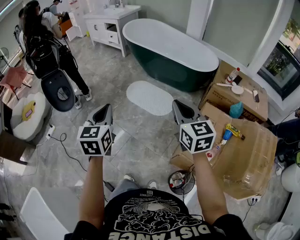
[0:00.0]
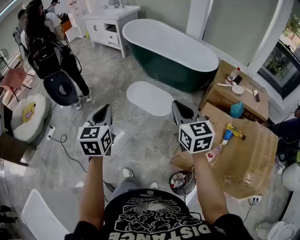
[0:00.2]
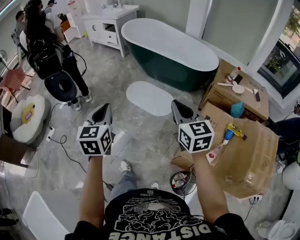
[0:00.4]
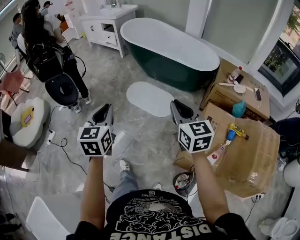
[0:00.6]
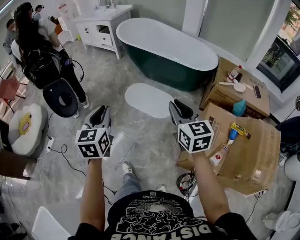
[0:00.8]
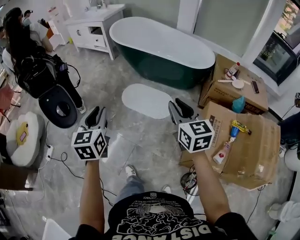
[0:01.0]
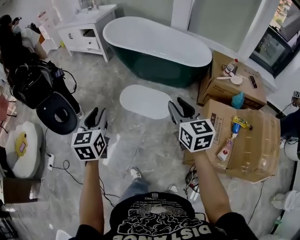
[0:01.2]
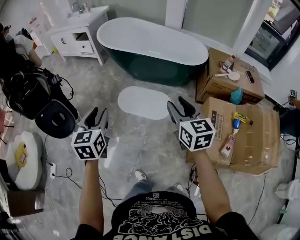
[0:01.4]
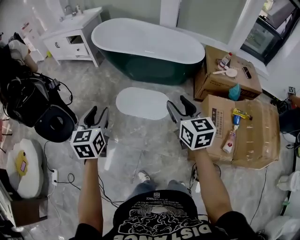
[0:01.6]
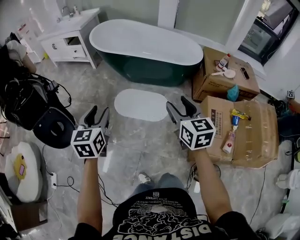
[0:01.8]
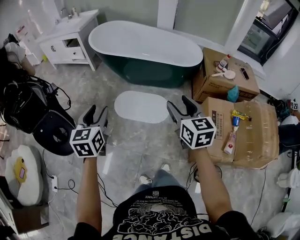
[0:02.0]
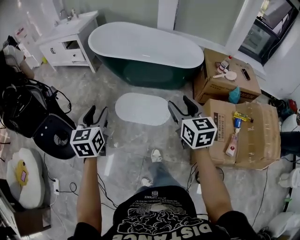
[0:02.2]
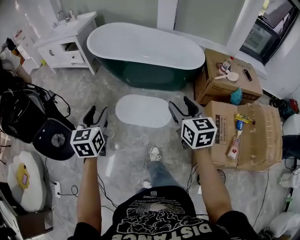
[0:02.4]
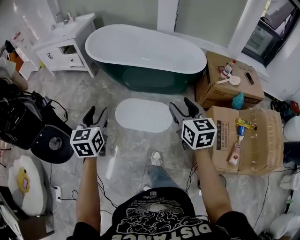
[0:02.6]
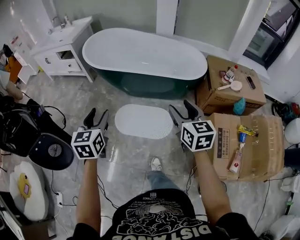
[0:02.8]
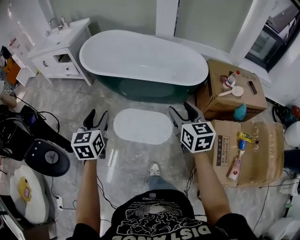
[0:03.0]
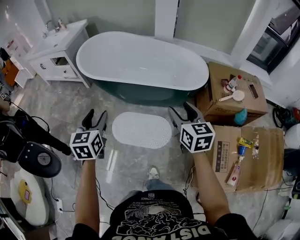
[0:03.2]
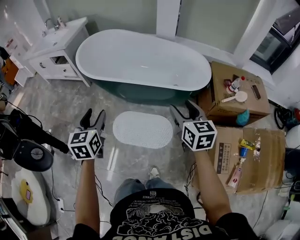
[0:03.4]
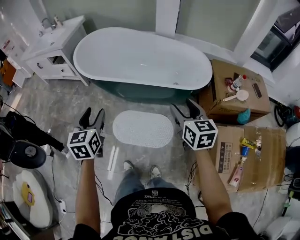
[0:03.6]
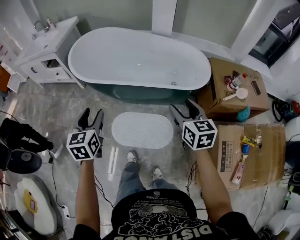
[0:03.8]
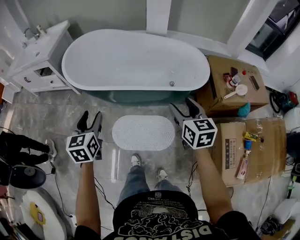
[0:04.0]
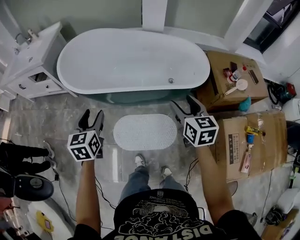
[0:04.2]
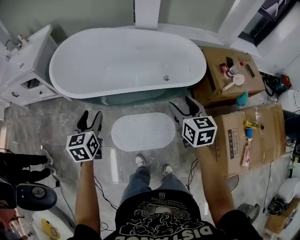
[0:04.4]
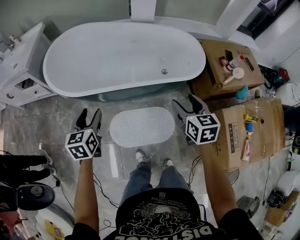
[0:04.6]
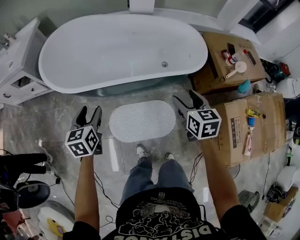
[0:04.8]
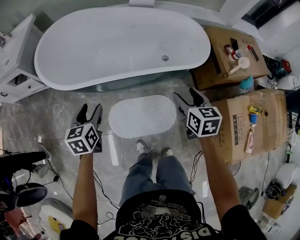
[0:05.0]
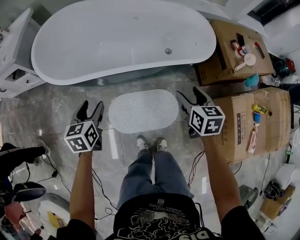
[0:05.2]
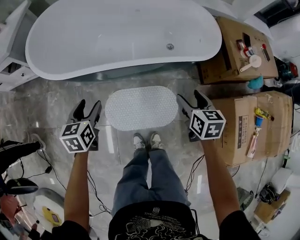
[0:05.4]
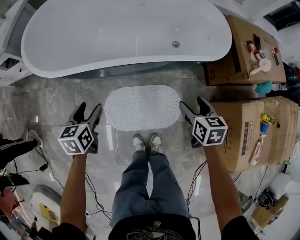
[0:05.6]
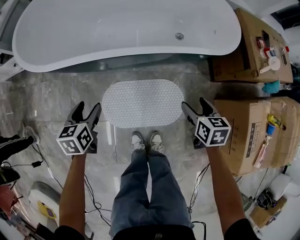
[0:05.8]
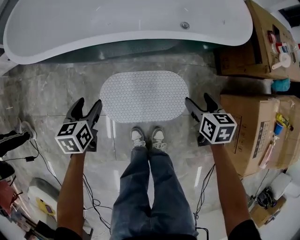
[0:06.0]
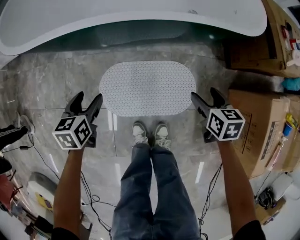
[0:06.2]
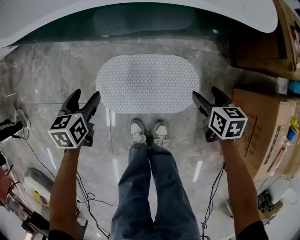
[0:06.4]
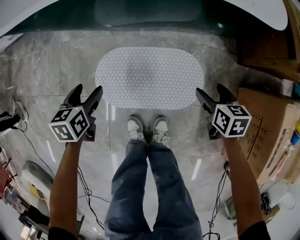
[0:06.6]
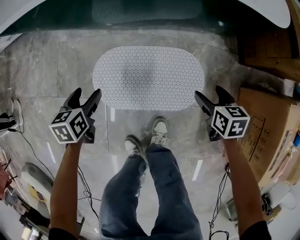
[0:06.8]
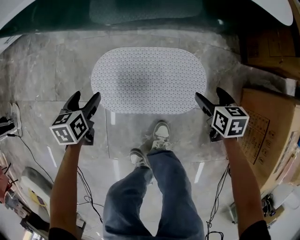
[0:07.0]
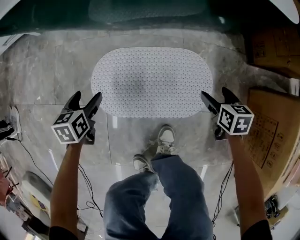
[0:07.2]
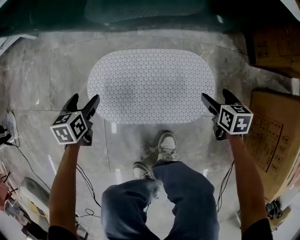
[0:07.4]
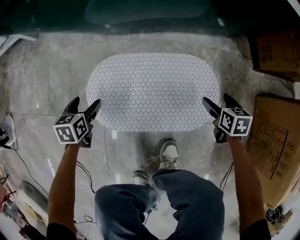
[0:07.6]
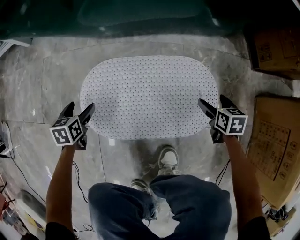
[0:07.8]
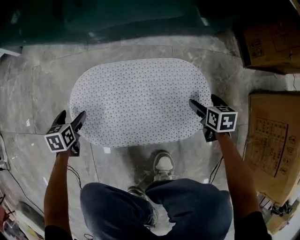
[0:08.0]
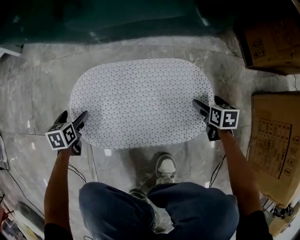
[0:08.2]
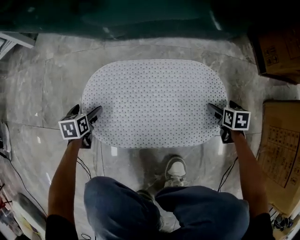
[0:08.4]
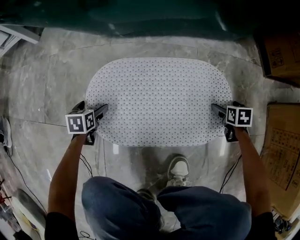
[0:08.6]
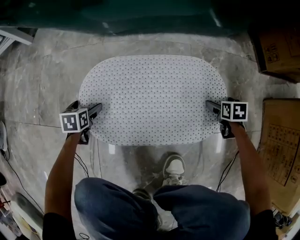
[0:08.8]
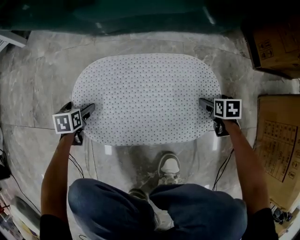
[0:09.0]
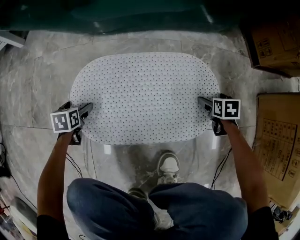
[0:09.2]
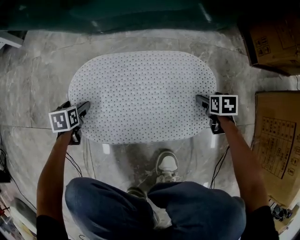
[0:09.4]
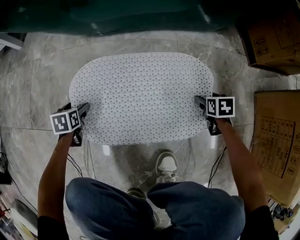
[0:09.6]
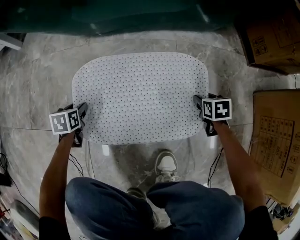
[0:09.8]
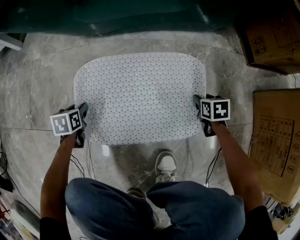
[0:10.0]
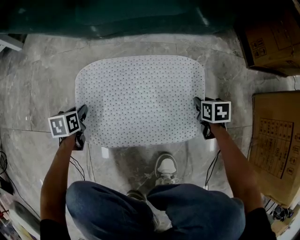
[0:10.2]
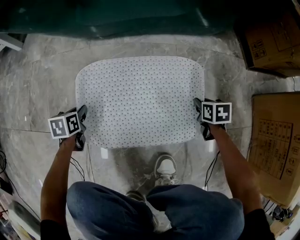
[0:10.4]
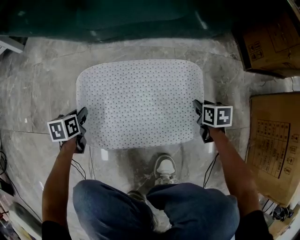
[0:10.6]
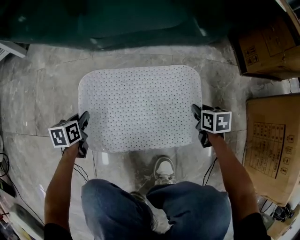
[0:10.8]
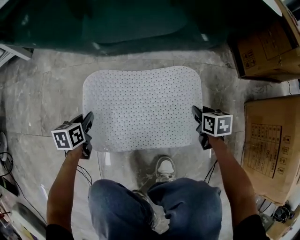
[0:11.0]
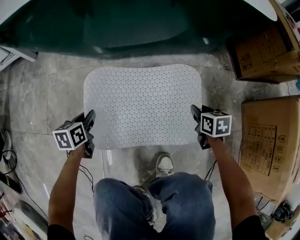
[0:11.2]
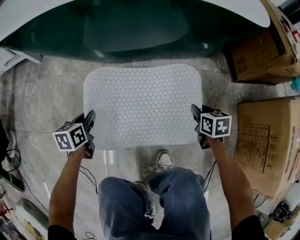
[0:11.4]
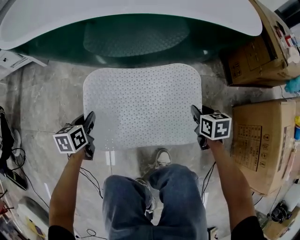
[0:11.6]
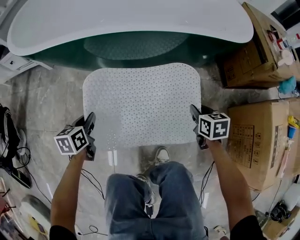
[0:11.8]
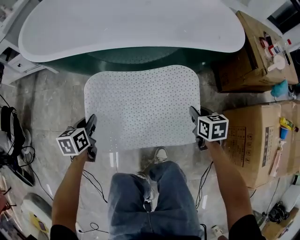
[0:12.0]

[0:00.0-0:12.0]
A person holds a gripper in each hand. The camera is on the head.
0:00.0 to 0:01.6: The two grippers go approximately 25 cm forward and to the left. The right gripper changes its angle by some 20 degrees, and opens; the left gripper opens.
0:01.6 to 0:03.0: The grippers both shift forward by approximately 25 cm.
0:03.0 to 0:04.4: Both grippers travel together forward, about 25 cm.
0:04.4 to 0:06.0: The grippers both shift downward by some 35 cm. The left gripper swivels some 20 degrees; the right gripper rotates some 20 degrees.
0:06.0 to 0:07.6: Both grippers move downward, some 35 cm.
0:07.6 to 0:09.0: The two grippers go roughly 15 cm downward.
0:09.0 to 0:10.4: The left gripper closes. The right gripper travels to the left by some 5 cm, and closes up.
0:10.4 to 0:12.0: The two grippers go about 40 cm upward.

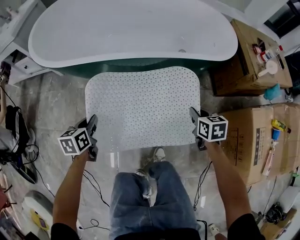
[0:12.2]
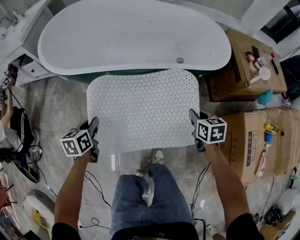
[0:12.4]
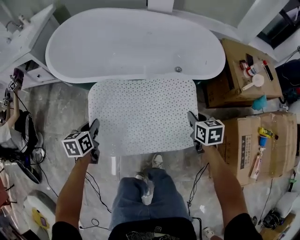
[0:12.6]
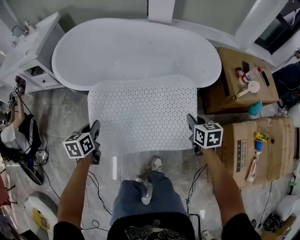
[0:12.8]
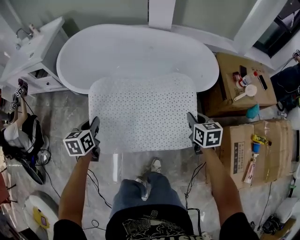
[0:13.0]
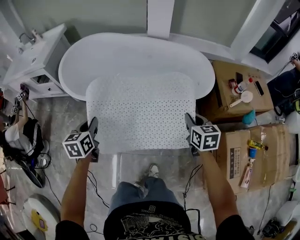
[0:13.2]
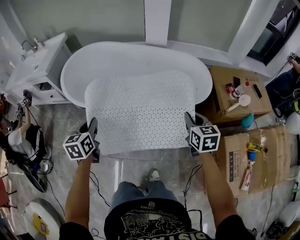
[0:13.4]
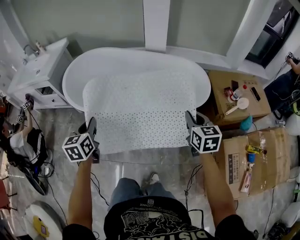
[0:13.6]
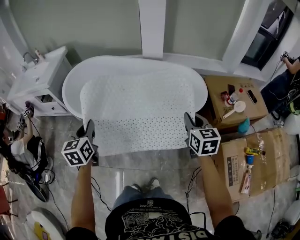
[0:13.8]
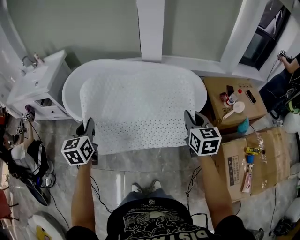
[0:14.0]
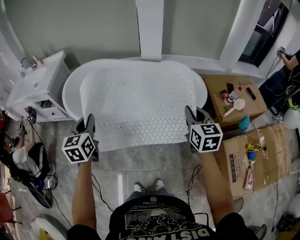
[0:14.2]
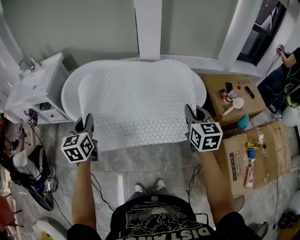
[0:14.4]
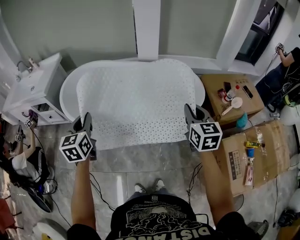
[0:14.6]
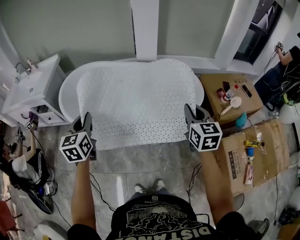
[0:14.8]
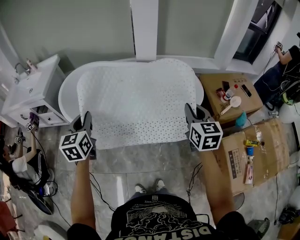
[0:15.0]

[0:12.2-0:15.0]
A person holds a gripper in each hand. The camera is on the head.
0:12.2 to 0:13.6: Both grippers travel together upward, roughly 35 cm. The left gripper swivels some 20 degrees. Meanwhile the right gripper changes its angle by approximately 20 degrees.
0:13.6 to 0:15.0: The left gripper shifts about 10 cm upward and forward, while the right gripper is displaced upward by roughly 10 cm.

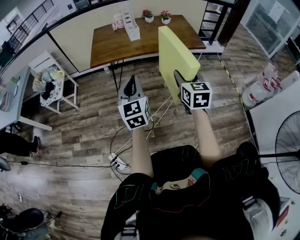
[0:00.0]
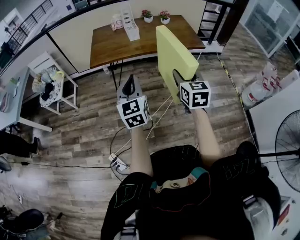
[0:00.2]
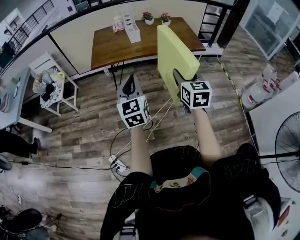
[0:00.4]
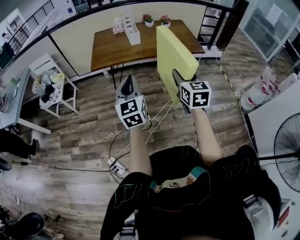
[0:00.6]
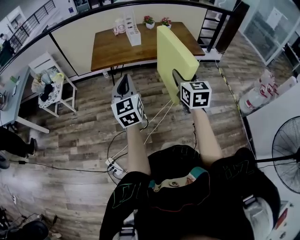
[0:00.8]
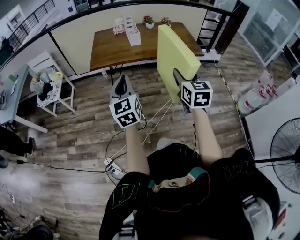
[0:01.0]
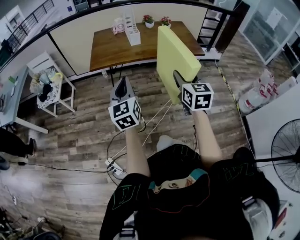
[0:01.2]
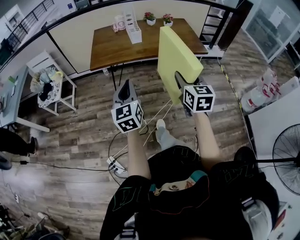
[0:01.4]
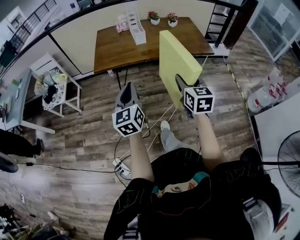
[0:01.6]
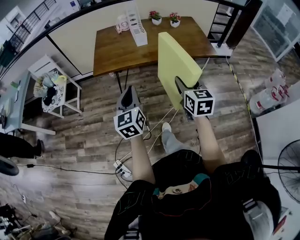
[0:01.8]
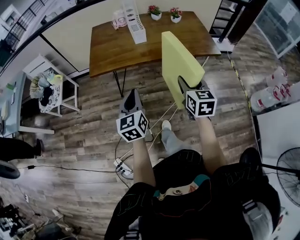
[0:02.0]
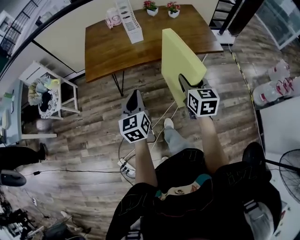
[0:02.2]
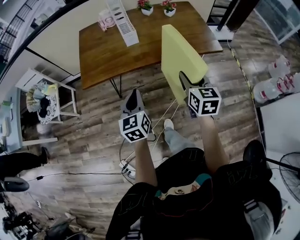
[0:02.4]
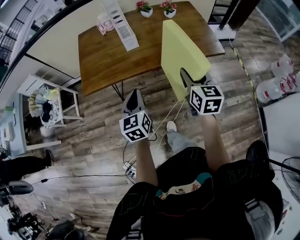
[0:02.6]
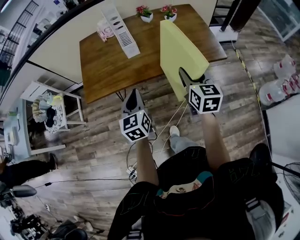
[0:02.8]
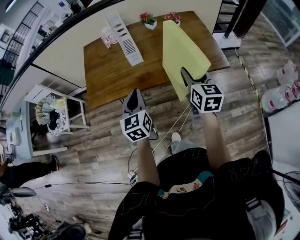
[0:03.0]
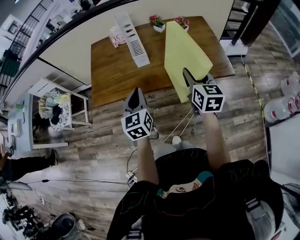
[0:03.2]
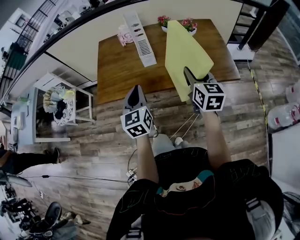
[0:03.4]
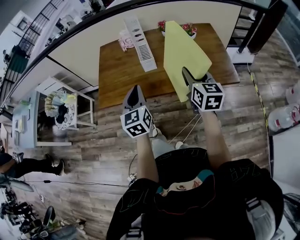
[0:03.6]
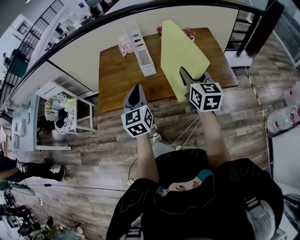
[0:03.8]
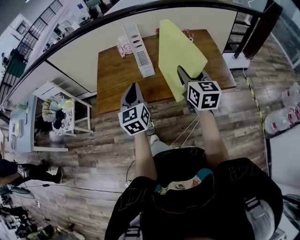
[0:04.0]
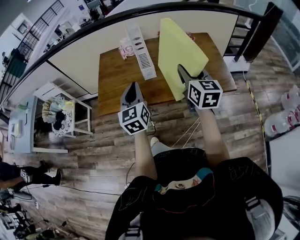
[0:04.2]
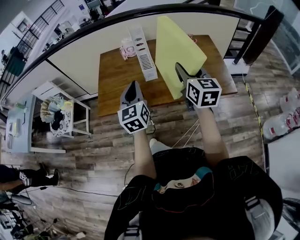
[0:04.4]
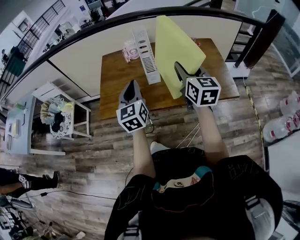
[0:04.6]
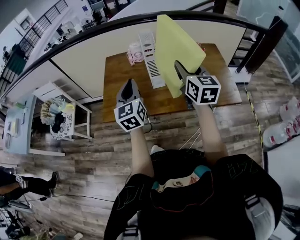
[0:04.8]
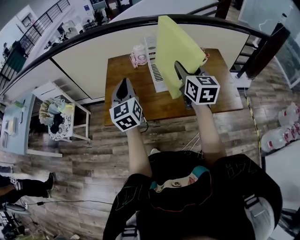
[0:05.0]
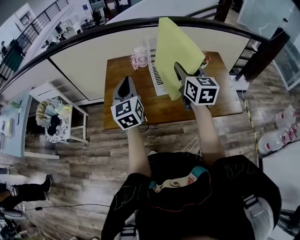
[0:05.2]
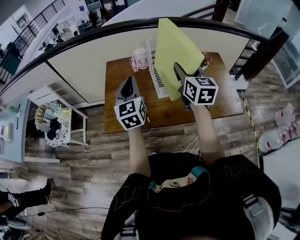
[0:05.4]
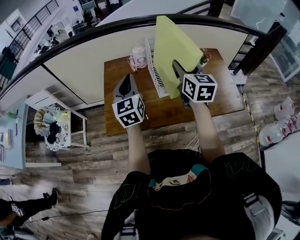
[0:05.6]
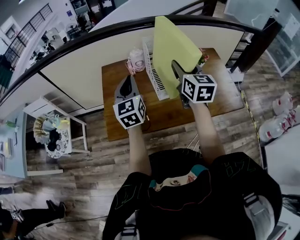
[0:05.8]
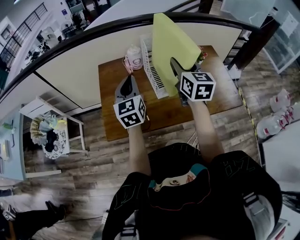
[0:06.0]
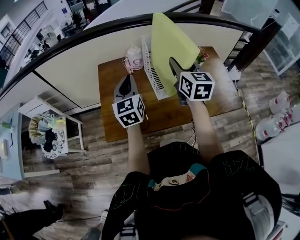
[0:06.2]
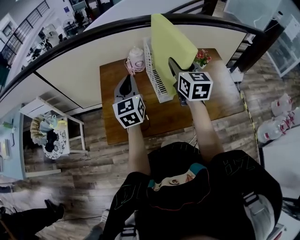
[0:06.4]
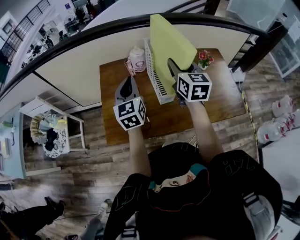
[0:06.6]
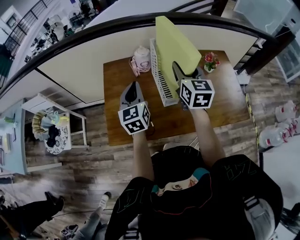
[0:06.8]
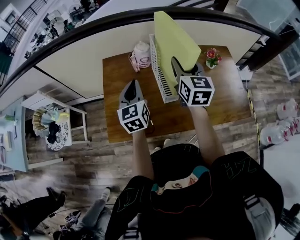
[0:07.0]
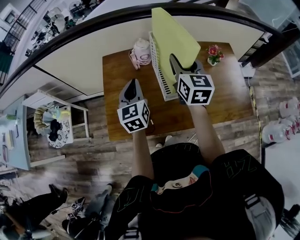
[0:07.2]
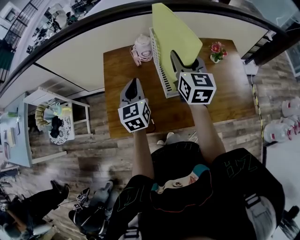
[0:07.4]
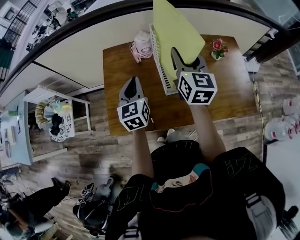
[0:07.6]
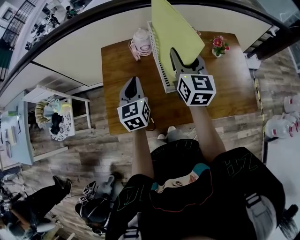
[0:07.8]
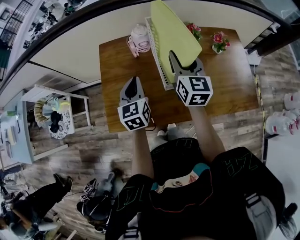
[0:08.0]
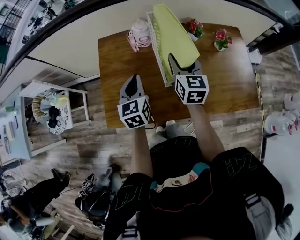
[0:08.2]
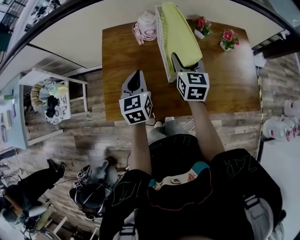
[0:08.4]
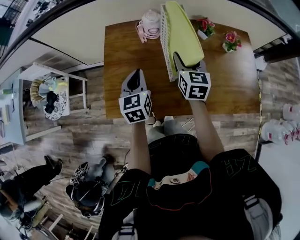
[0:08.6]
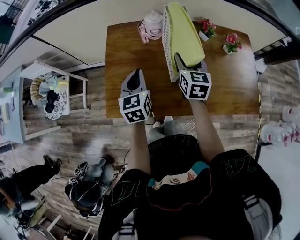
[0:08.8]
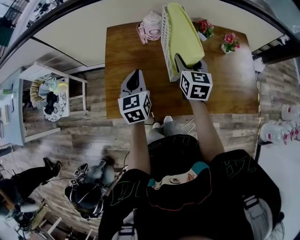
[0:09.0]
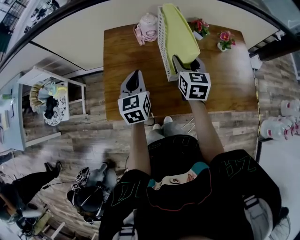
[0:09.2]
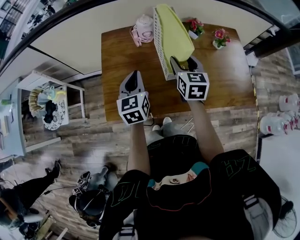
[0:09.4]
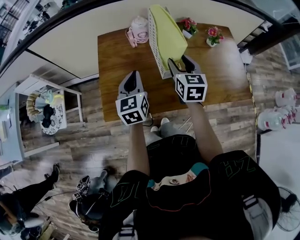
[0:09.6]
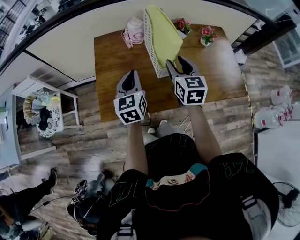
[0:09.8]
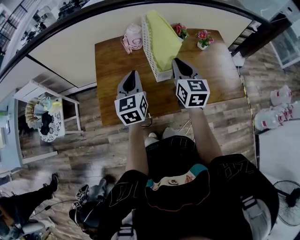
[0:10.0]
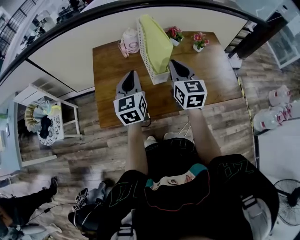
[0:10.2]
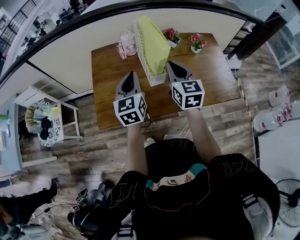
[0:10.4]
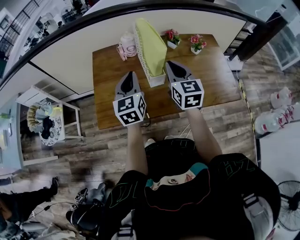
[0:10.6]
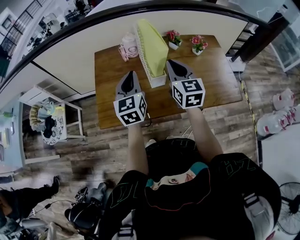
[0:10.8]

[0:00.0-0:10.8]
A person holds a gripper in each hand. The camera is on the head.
0:00.0 to 0:01.6: The two grippers go approximately 5 cm forward.
0:01.6 to 0:03.0: Both grippers travel together forward, some 30 cm.
0:03.0 to 0:04.6: Both grippers move forward, upward and to the left, roughly 15 cm.
0:04.6 to 0:06.2: The two grippers go some 20 cm forward and to the left.
0:06.2 to 0:07.8: The left gripper moves downward, some 10 cm; the right gripper goes roughly 10 cm forward.
0:07.8 to 0:09.2: The right gripper moves downward, some 10 cm.
0:09.2 to 0:10.8: The right gripper heads upward and backward, covering approximately 15 cm, and closes up; the left gripper is displaced upward and to the right by approximately 10 cm.
